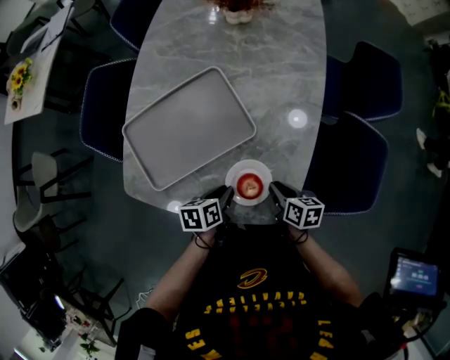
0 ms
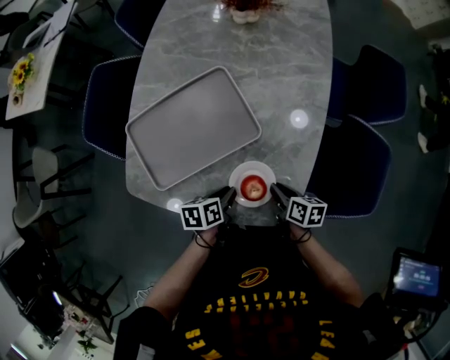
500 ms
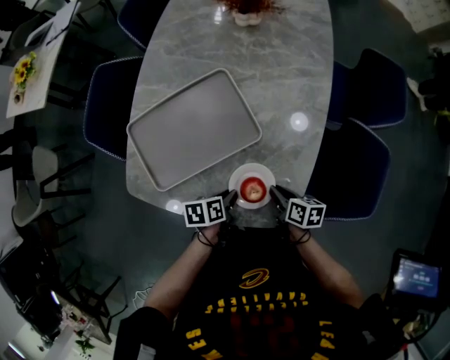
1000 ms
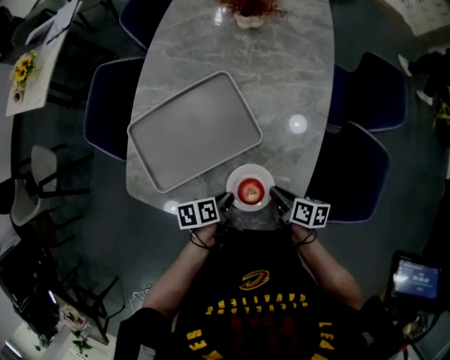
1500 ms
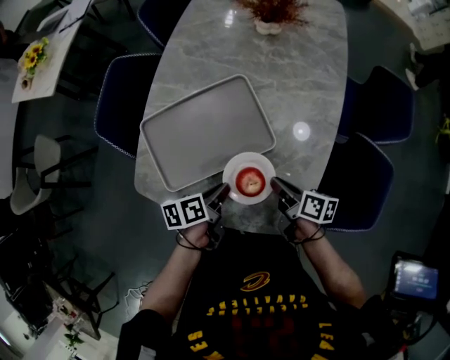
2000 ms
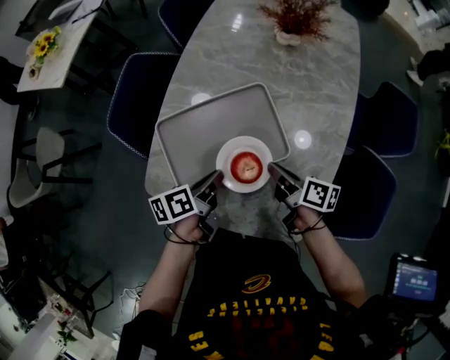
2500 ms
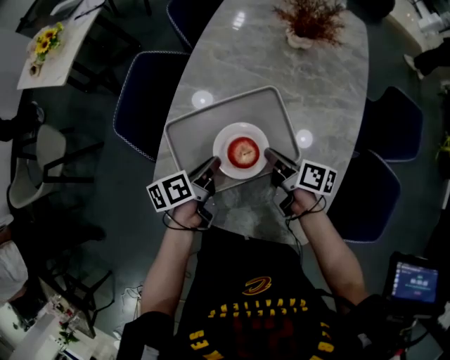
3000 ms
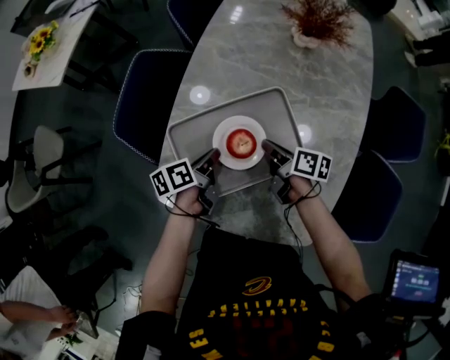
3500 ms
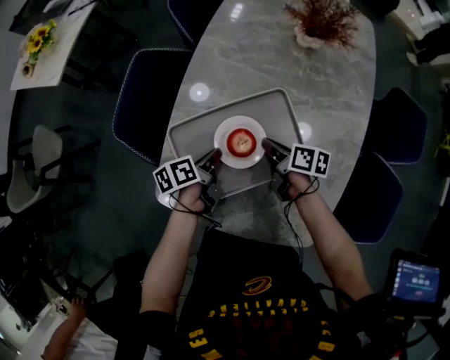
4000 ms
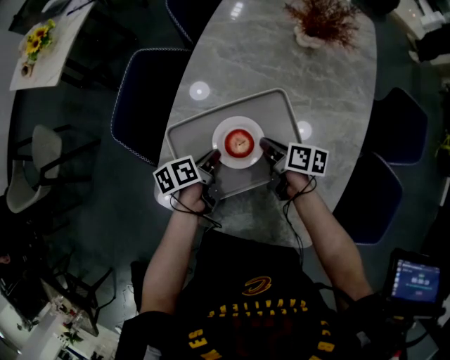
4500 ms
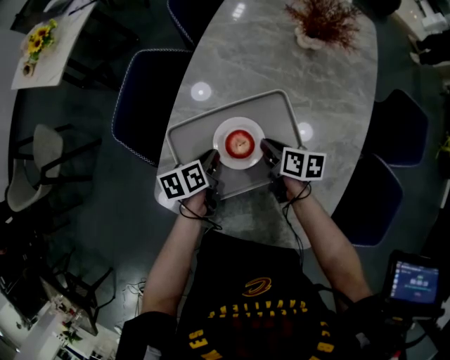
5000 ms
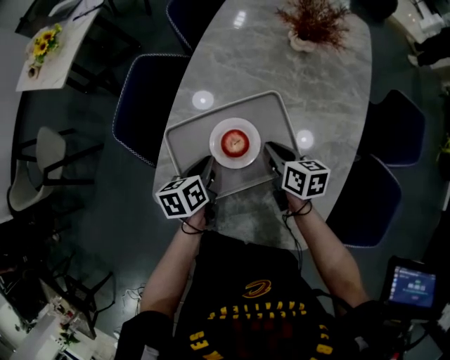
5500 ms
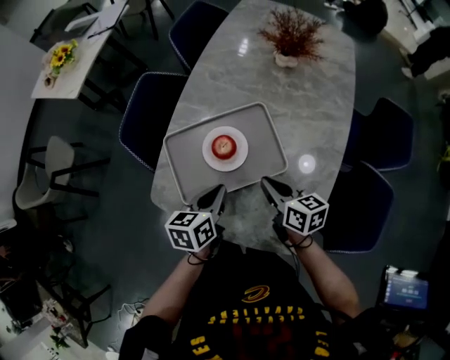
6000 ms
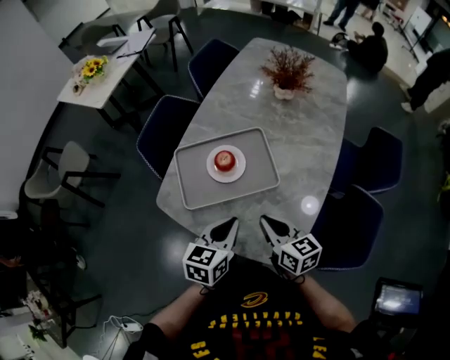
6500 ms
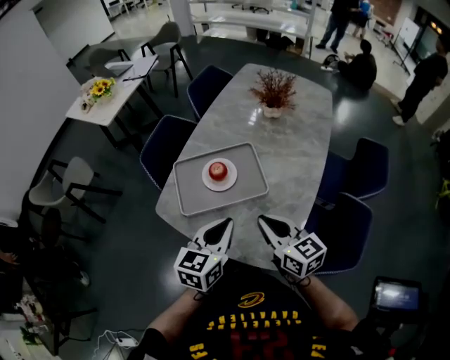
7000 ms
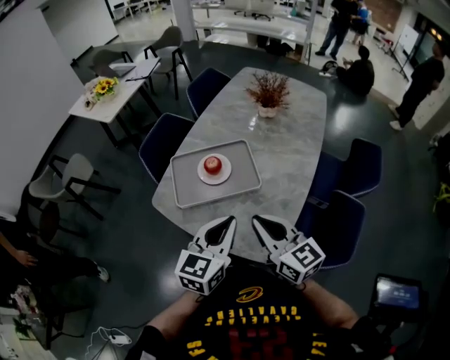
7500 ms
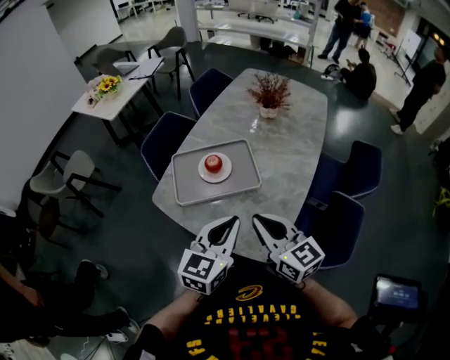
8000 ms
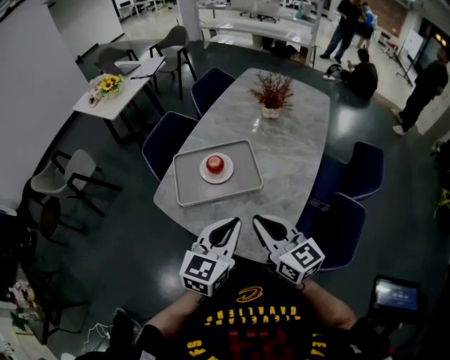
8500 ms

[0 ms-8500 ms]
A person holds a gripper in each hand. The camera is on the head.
0 ms to 2000 ms: The right gripper travels upward, to the left and forward by roughly 10 cm. The left gripper goes some 10 cm to the left and upward, and changes its angle by approximately 20 degrees.
2000 ms to 4000 ms: The grippers both shift forward and to the left by about 20 cm.
4000 ms to 6500 ms: The left gripper shifts roughly 30 cm backward, upward and to the right, and rotates around the line of its fingers by roughly 50 degrees, clockwise from behind. The right gripper travels backward and upward by about 25 cm, and swivels about 40 degrees.
6500 ms to 8500 ms: The grippers both shift upward and backward by approximately 15 cm. The left gripper rotates some 20 degrees; the right gripper changes its angle by about 20 degrees.

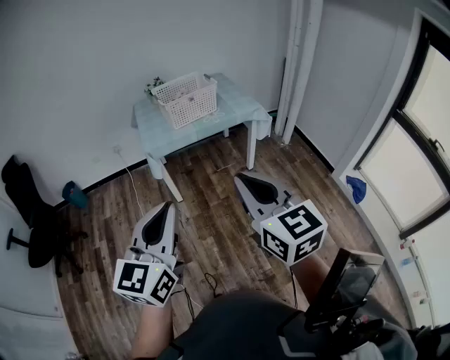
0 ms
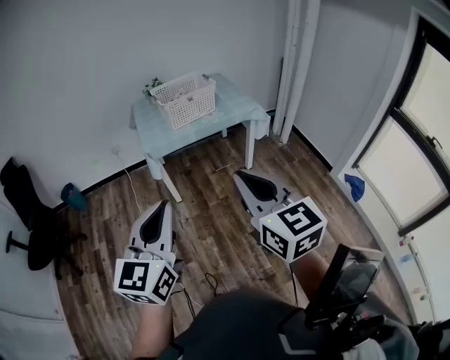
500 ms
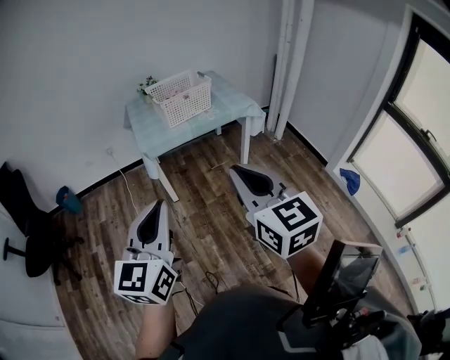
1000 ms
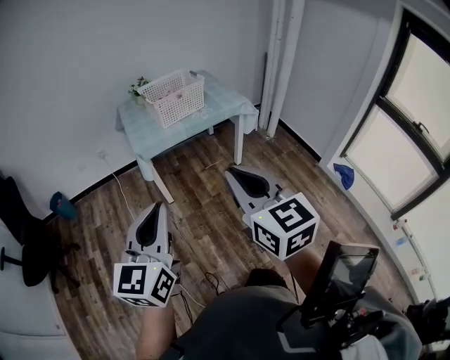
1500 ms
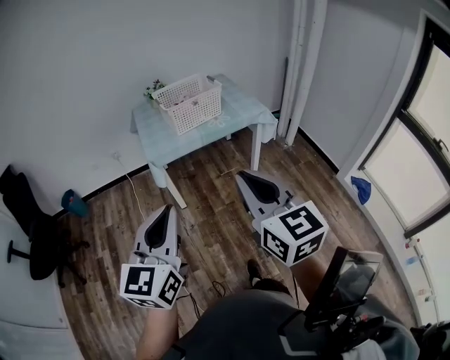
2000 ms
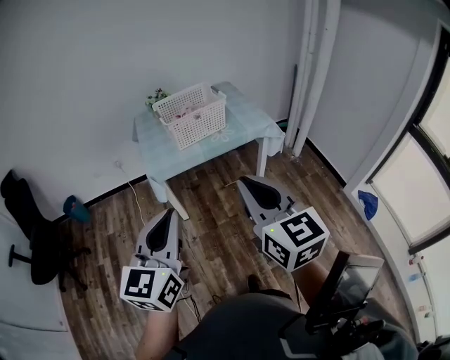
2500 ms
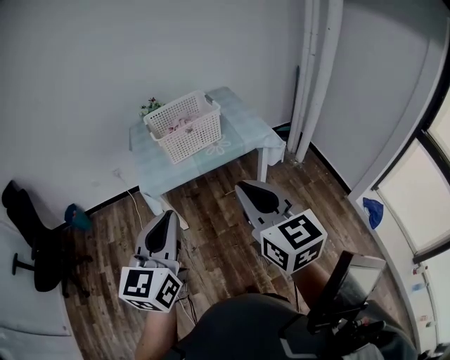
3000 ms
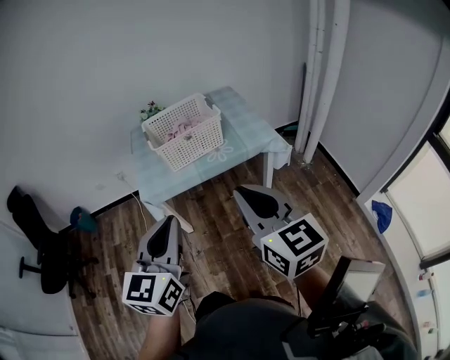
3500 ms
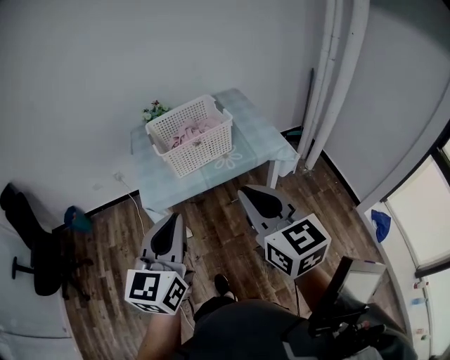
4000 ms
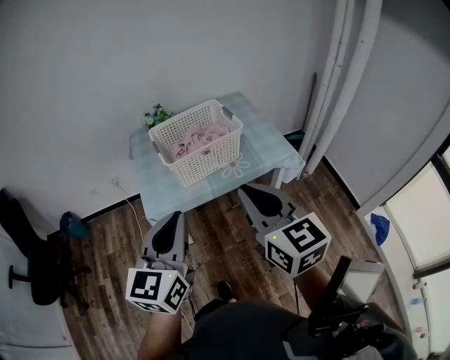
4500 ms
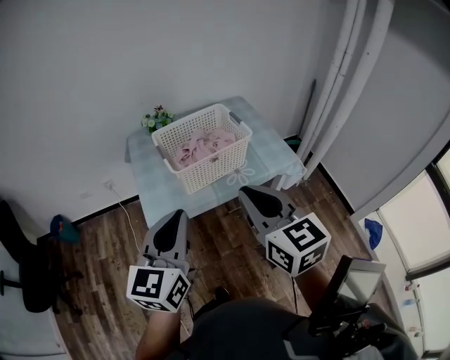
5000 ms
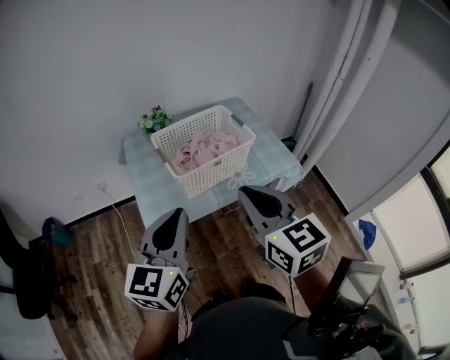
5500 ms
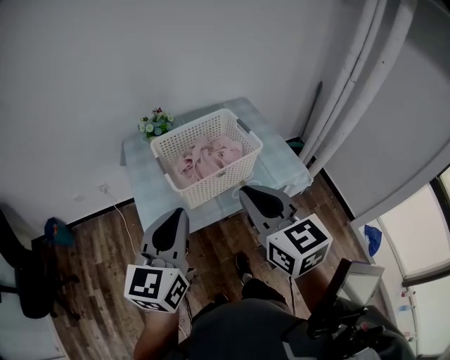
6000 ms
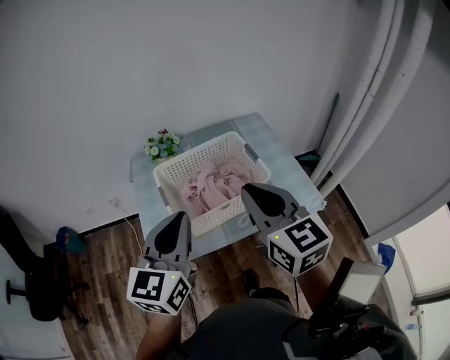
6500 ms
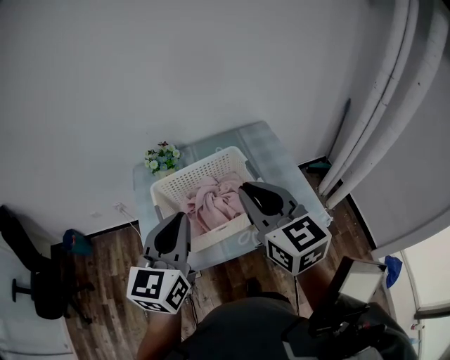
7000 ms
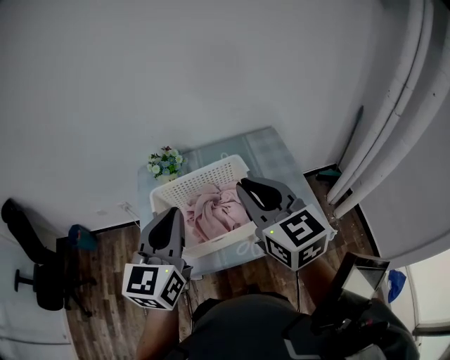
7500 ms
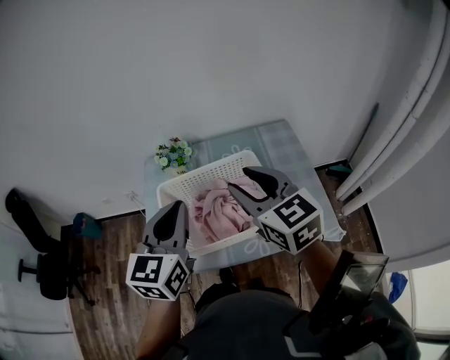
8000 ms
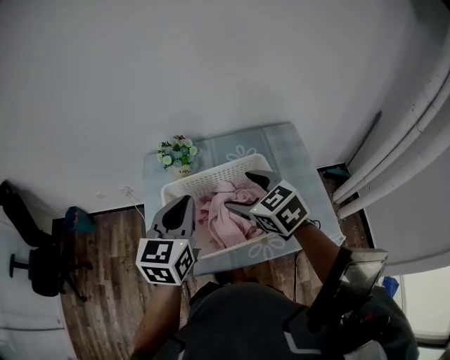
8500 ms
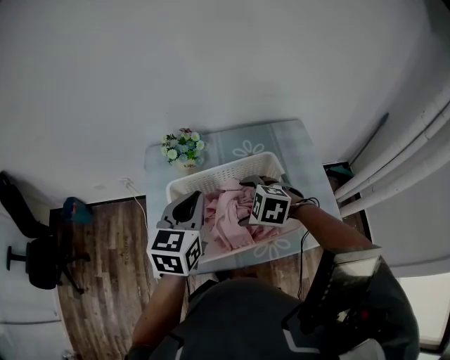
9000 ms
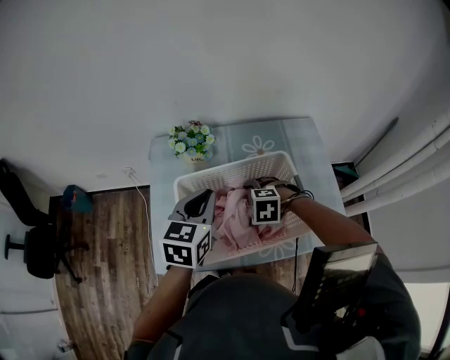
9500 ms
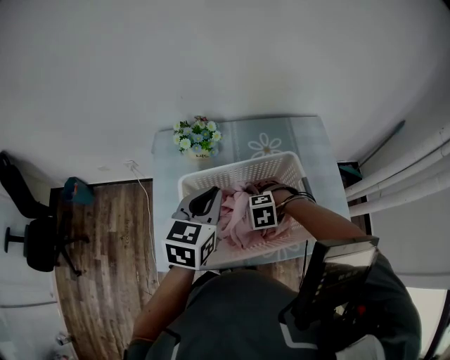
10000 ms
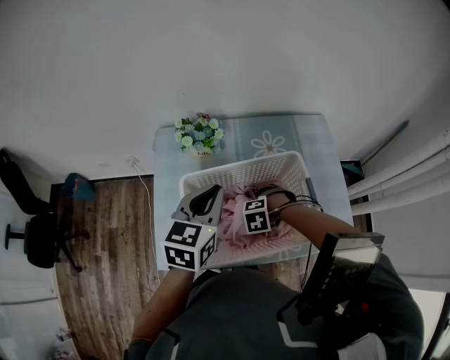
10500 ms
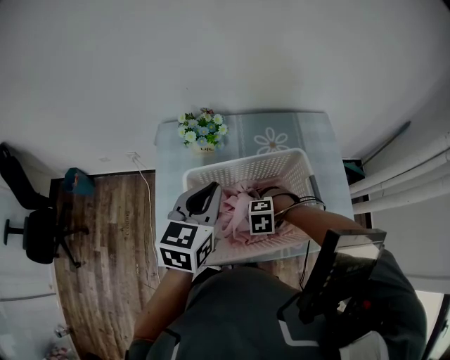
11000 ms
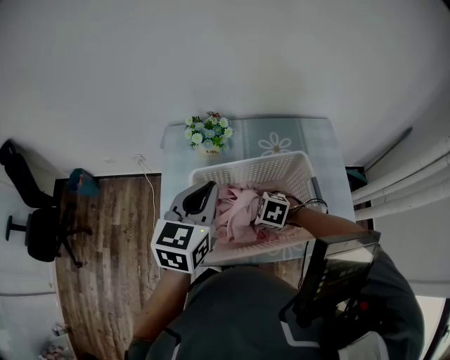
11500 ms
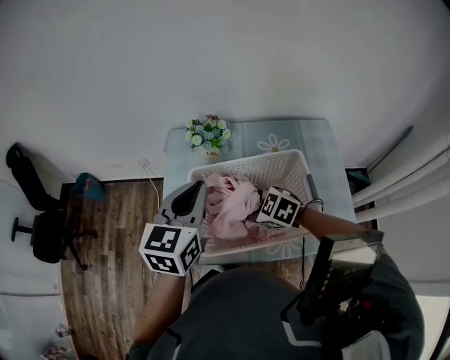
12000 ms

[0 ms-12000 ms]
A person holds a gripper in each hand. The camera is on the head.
0 ms to 2000 ms: The grippers both shift forward by roughly 5 cm.
2000 ms to 4000 ms: Both grippers move forward, about 30 cm.
4000 ms to 6000 ms: The grippers both shift forward and to the left by about 25 cm.
6000 ms to 8000 ms: The two grippers go approximately 25 cm forward. The right gripper turns by some 20 degrees.
8000 ms to 10000 ms: The left gripper is displaced downward by some 10 cm. The right gripper shifts some 35 cm downward, angles its fingers downward, by roughly 70 degrees, and opens.
10000 ms to 12000 ms: The two grippers go approximately 10 cm upward. The right gripper tilts its fingers about 30 degrees upward, and closes up.

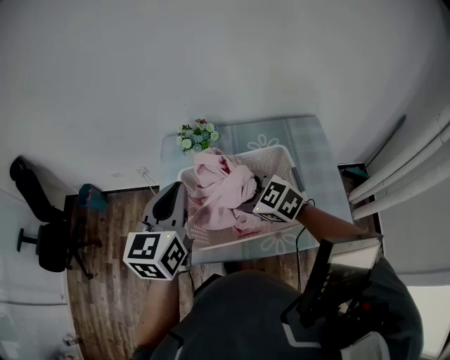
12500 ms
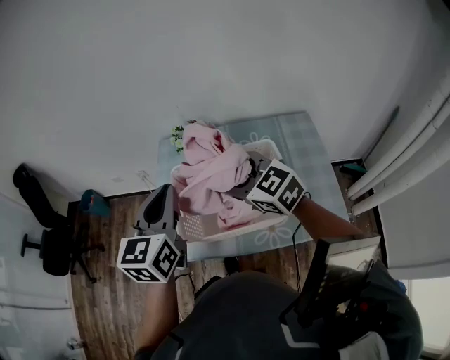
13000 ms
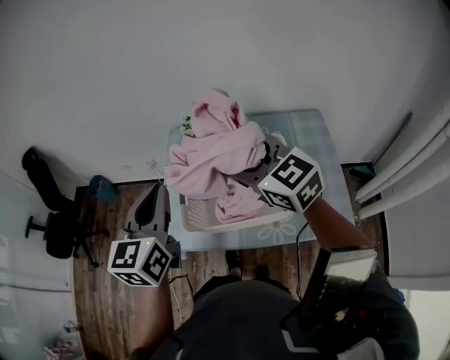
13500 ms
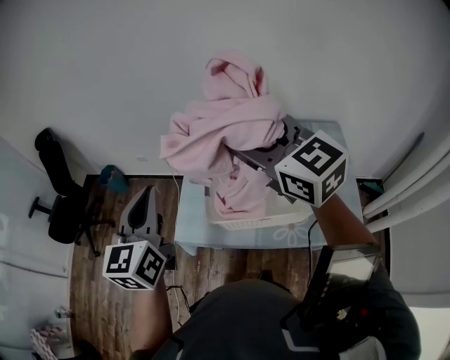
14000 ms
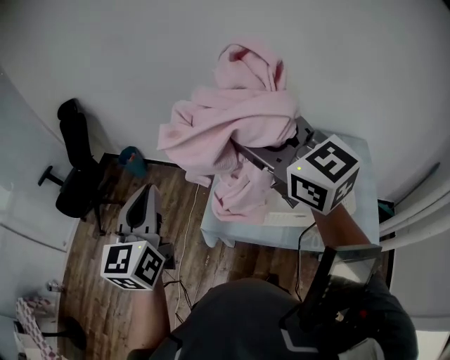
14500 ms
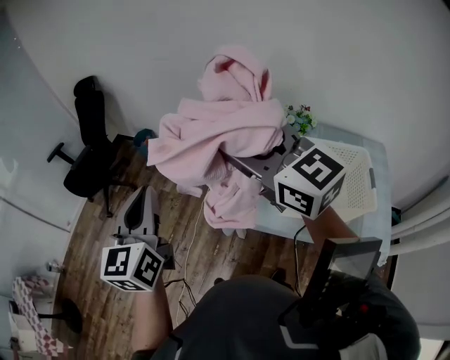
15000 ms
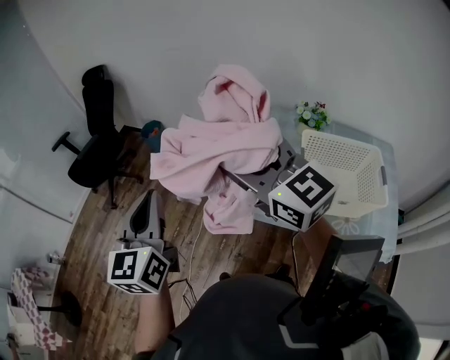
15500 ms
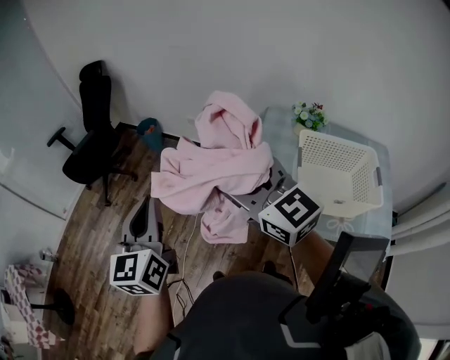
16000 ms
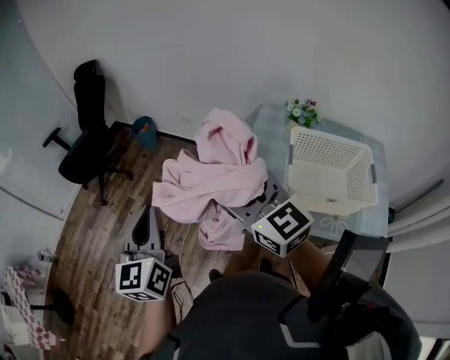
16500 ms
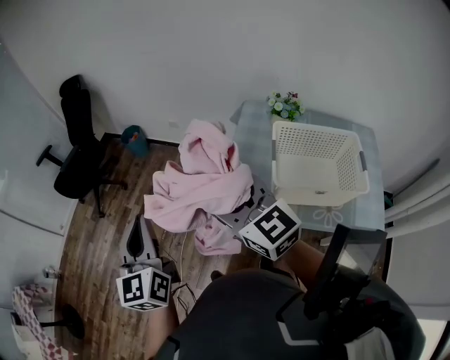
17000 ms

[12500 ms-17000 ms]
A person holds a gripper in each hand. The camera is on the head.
12500 ms to 14500 ms: The right gripper travels upward and to the left by some 30 cm, and tilts its fingers some 30 degrees upward. The left gripper travels to the left and backward by approximately 25 cm, and swivels roughly 30 degrees.
14500 ms to 17000 ms: The right gripper shifts approximately 30 cm to the left and downward, while the left gripper travels to the left by about 25 cm.

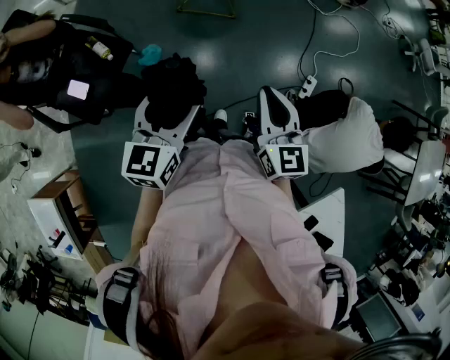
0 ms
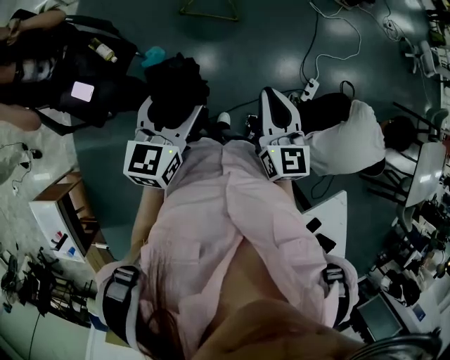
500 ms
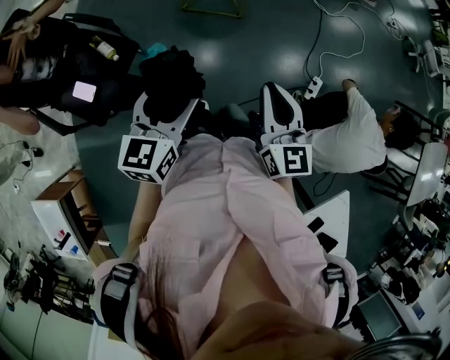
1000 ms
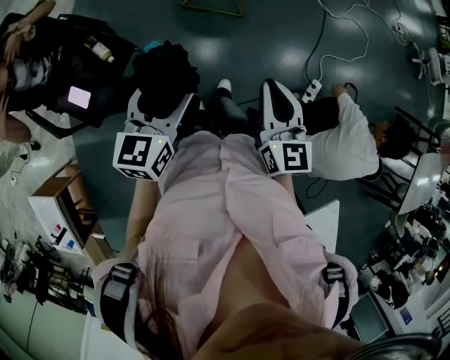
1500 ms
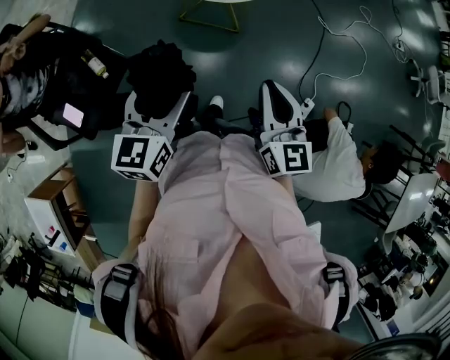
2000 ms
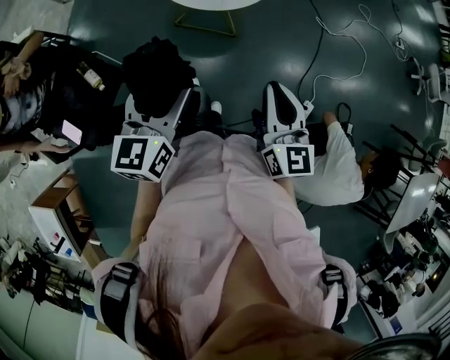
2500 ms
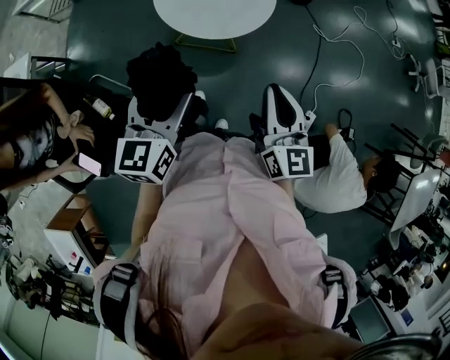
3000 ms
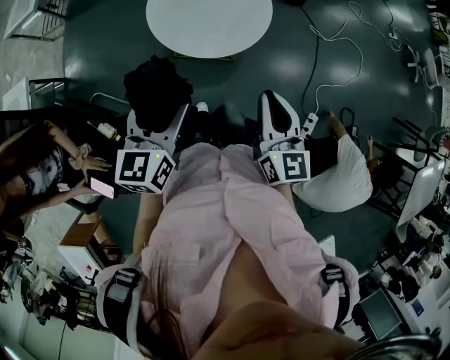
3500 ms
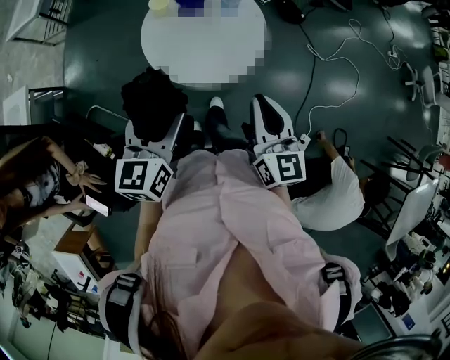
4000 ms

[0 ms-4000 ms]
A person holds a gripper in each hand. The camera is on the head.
0 ms to 2000 ms: The grippers both shift forward by some 20 cm.
2000 ms to 4000 ms: The two grippers go some 30 cm forward.
